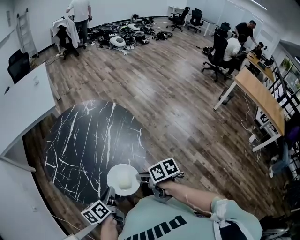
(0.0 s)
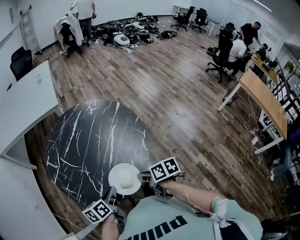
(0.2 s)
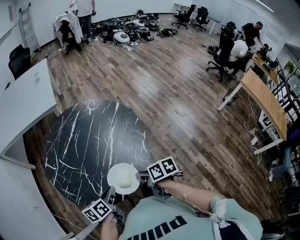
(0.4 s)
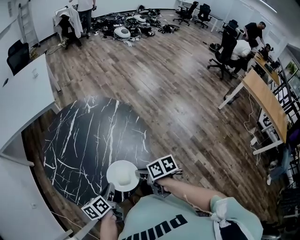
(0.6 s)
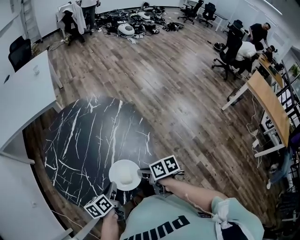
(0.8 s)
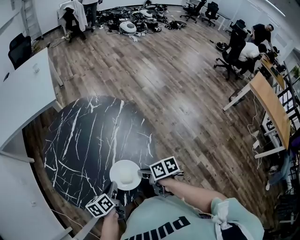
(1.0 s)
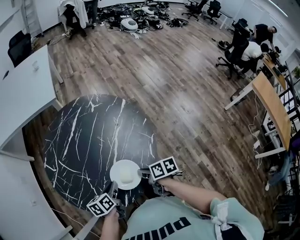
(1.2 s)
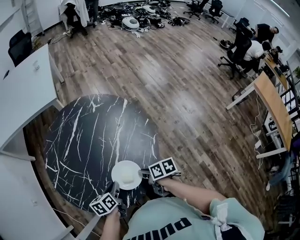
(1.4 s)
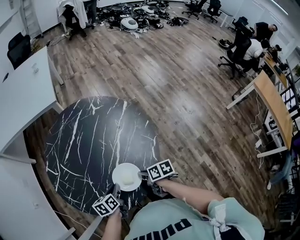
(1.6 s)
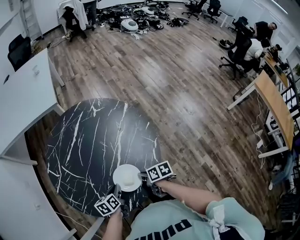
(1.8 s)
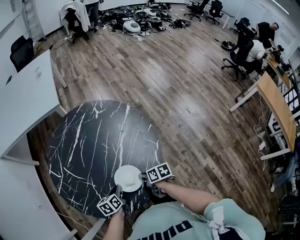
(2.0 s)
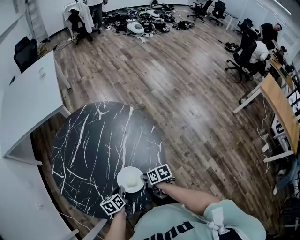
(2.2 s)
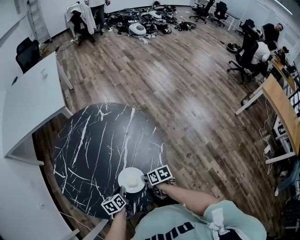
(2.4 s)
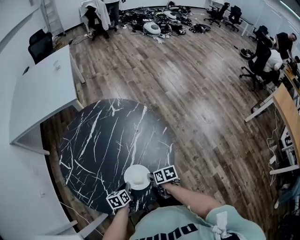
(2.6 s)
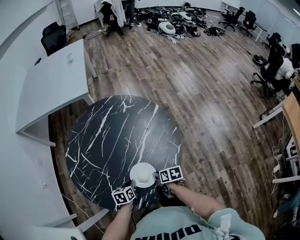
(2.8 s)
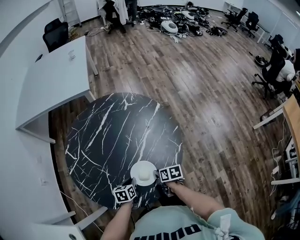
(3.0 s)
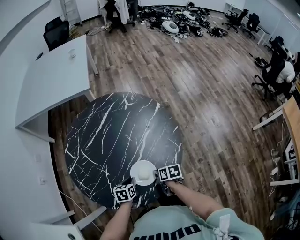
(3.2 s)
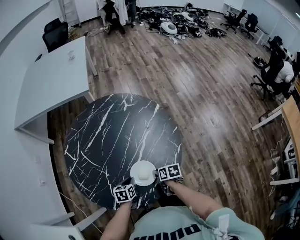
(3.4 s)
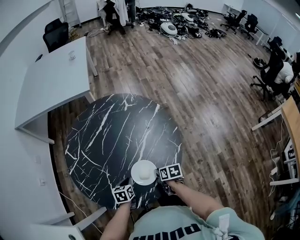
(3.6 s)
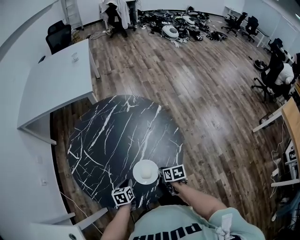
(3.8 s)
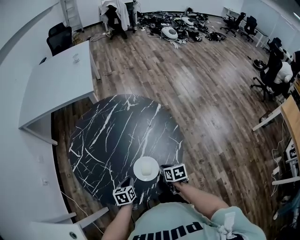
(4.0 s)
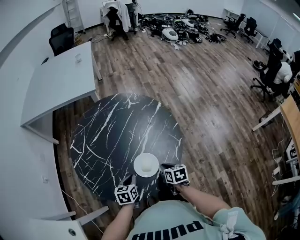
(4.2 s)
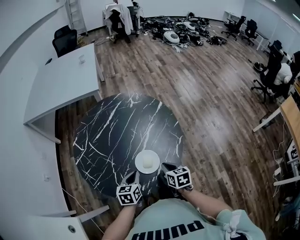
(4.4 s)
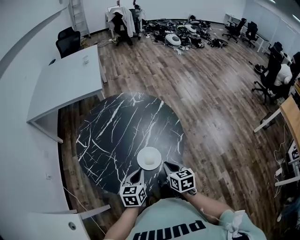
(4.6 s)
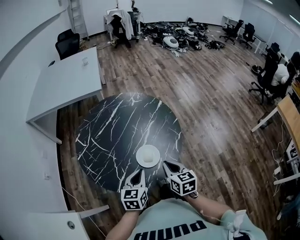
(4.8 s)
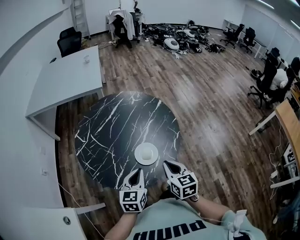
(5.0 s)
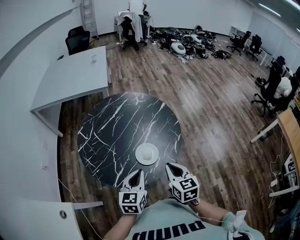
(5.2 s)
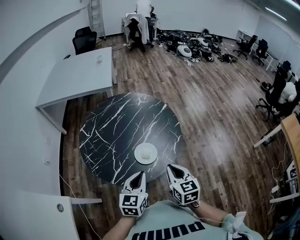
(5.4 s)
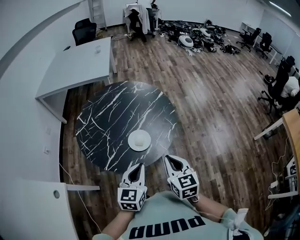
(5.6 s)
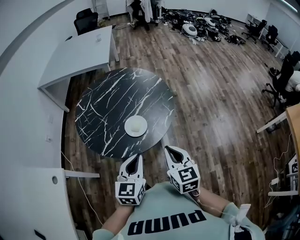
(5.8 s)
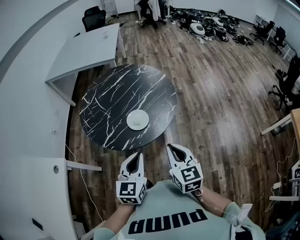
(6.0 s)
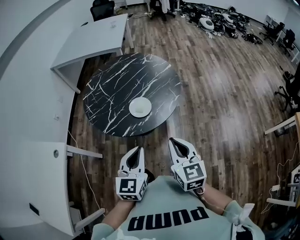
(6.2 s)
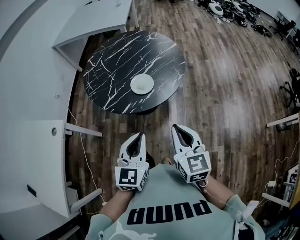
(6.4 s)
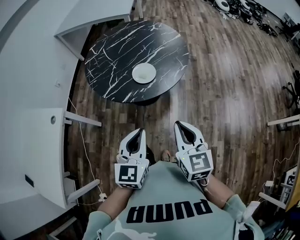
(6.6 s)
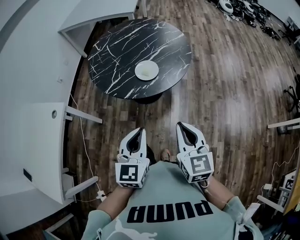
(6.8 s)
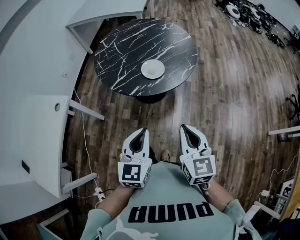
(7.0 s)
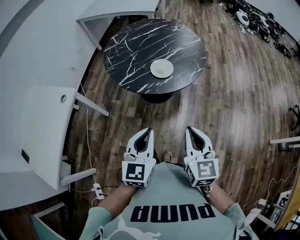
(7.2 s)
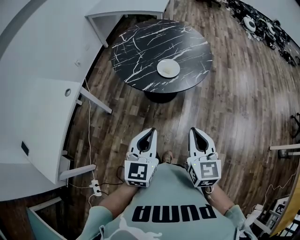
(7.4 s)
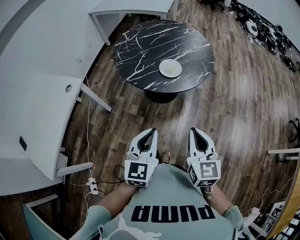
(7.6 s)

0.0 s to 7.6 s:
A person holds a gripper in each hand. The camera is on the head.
0.0 to 1.6 s: The right gripper heads forward and downward, covering about 20 cm, while the left gripper moves downward and forward, some 20 cm.
1.6 to 3.0 s: Both grippers move downward, about 5 cm.
3.0 to 4.6 s: The left gripper shifts some 15 cm upward, and rotates some 30 degrees. Meanwhile the right gripper shifts approximately 20 cm upward and backward, and turns by roughly 30 degrees.
4.6 to 6.0 s: The two grippers go roughly 25 cm backward, upward and to the right. The right gripper turns by about 30 degrees, while the left gripper turns by some 20 degrees.
6.0 to 7.6 s: The grippers both shift backward by approximately 15 cm.

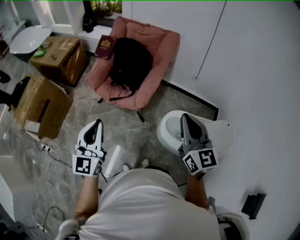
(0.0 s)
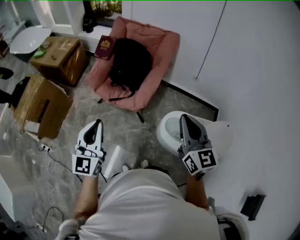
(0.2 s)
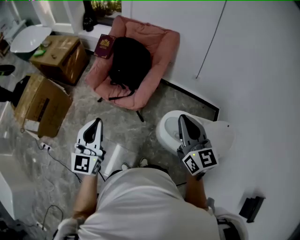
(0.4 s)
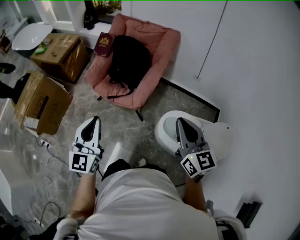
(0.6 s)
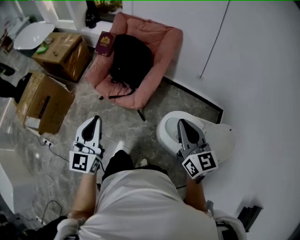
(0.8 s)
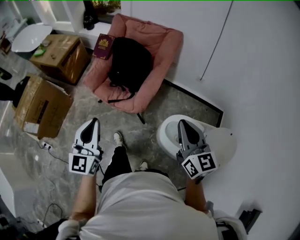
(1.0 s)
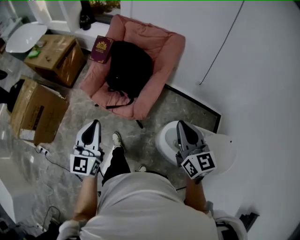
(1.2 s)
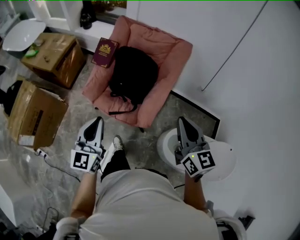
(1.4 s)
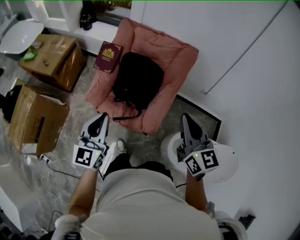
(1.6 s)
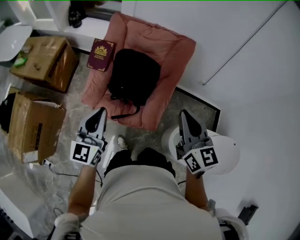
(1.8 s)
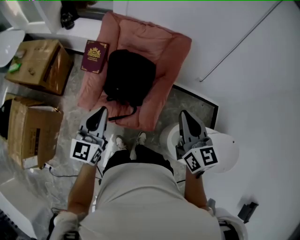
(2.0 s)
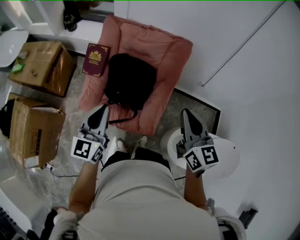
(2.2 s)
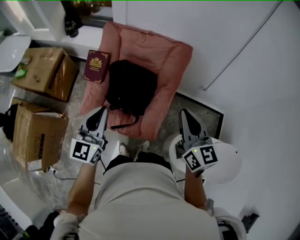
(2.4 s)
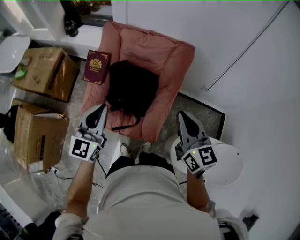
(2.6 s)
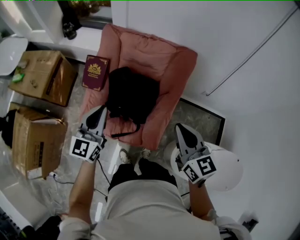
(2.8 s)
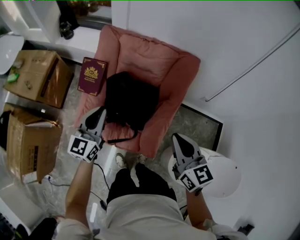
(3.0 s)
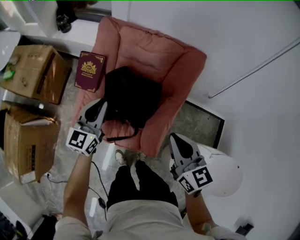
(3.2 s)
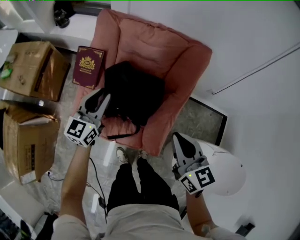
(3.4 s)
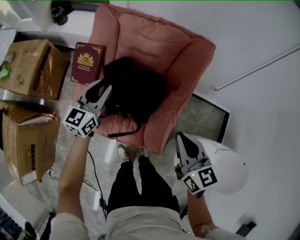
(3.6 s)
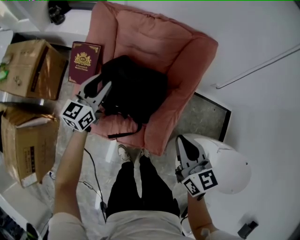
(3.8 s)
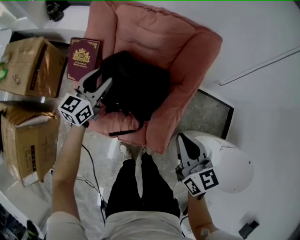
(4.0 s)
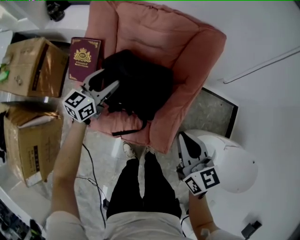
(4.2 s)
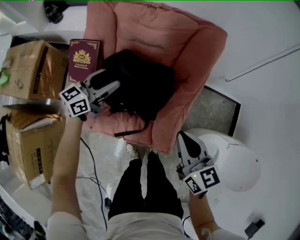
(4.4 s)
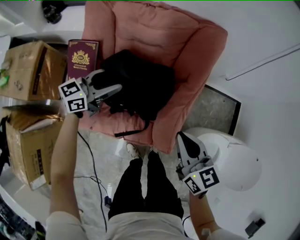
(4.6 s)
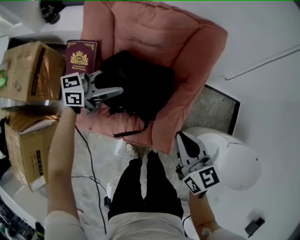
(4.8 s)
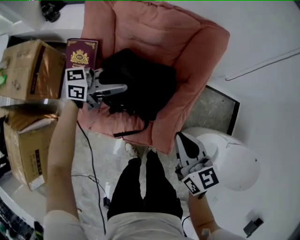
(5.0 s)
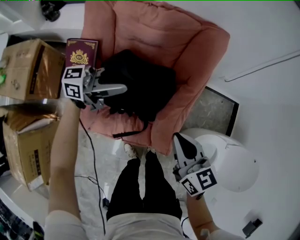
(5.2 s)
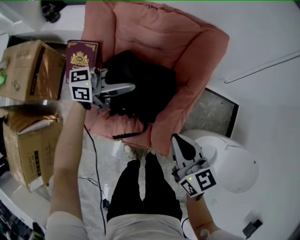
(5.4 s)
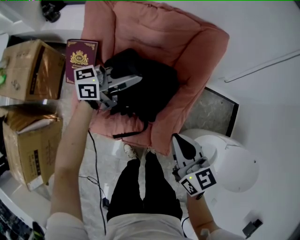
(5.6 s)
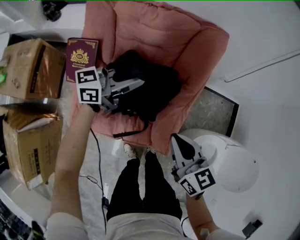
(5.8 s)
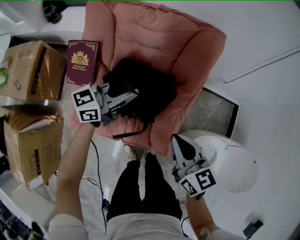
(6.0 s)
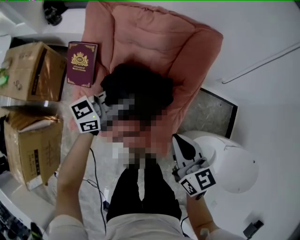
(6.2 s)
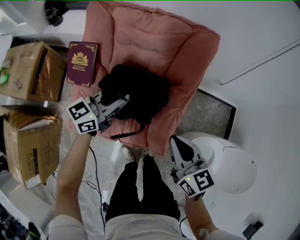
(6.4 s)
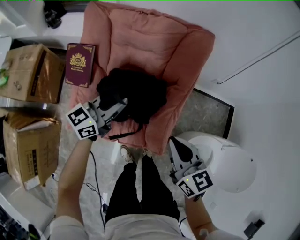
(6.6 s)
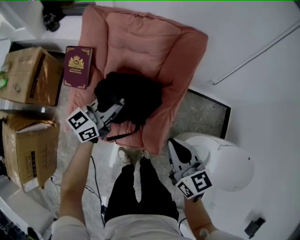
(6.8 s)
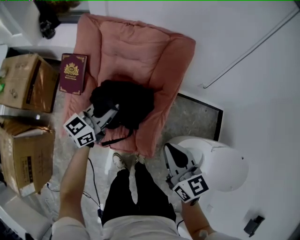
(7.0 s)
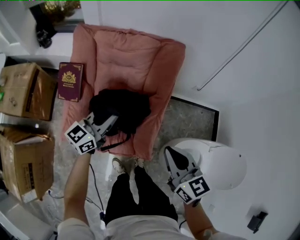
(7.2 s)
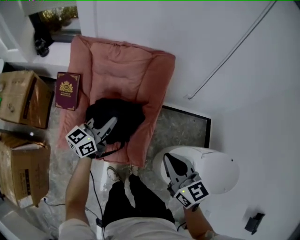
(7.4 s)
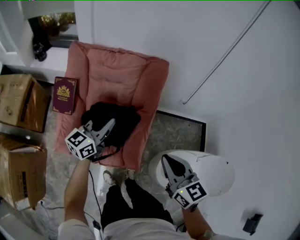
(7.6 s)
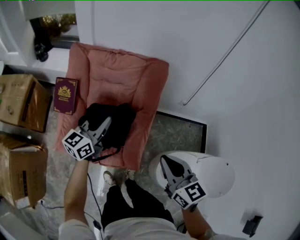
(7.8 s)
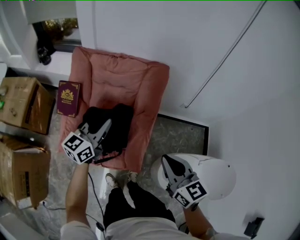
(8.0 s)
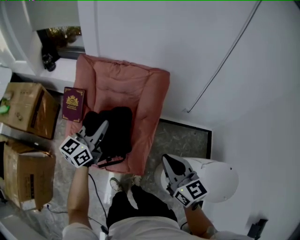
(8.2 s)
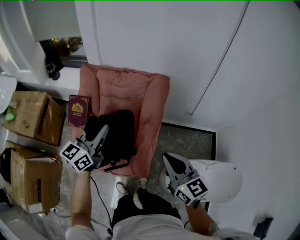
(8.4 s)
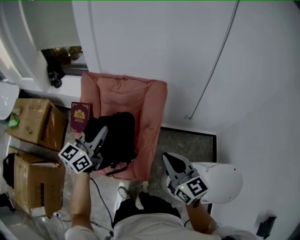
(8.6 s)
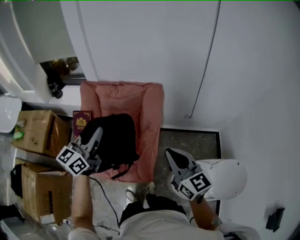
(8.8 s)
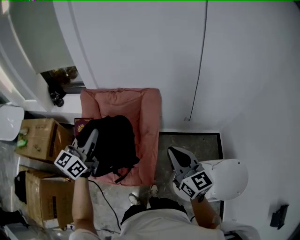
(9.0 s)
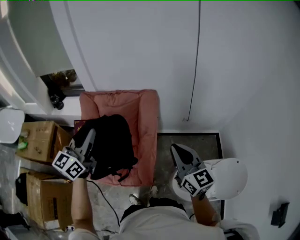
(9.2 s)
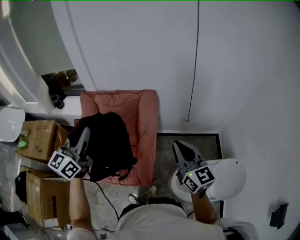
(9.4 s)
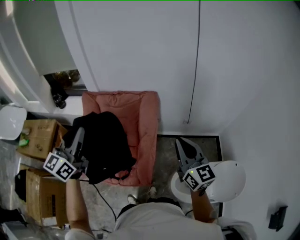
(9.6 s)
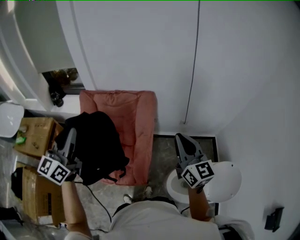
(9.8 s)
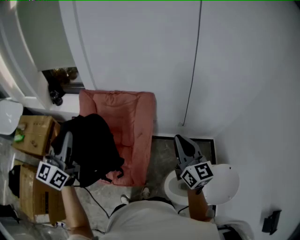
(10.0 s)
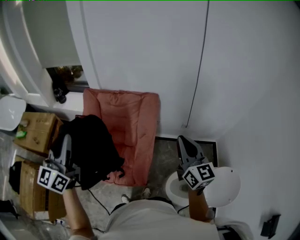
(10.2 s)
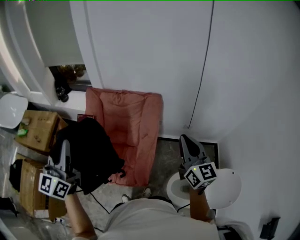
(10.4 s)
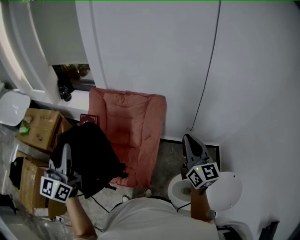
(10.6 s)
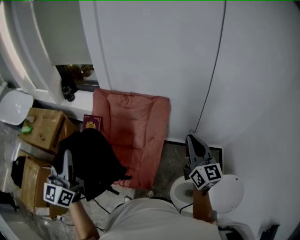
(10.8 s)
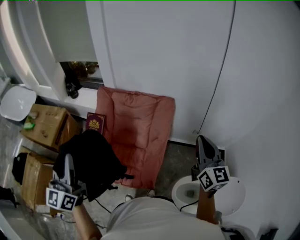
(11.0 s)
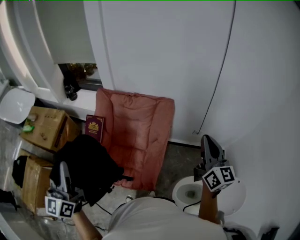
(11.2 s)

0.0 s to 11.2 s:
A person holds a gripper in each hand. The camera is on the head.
0.0 to 1.6 s: Both grippers travel together forward, approximately 30 cm.
1.6 to 3.2 s: The right gripper is displaced forward and downward by about 20 cm; the left gripper goes some 30 cm forward and downward.
3.2 to 4.8 s: Both grippers travel together downward, some 10 cm. The left gripper turns by some 60 degrees, and opens up.
4.8 to 6.4 s: The left gripper is displaced to the right by roughly 5 cm, and closes its fingers.
6.4 to 8.0 s: The right gripper is displaced upward and to the right by roughly 15 cm; the left gripper travels upward by approximately 10 cm.
8.0 to 9.6 s: The left gripper is displaced upward by roughly 25 cm. The right gripper travels upward and to the right by some 20 cm, and turns by about 20 degrees.
9.6 to 11.2 s: The left gripper heads to the left and backward, covering about 20 cm, and swivels about 30 degrees. The right gripper moves forward, some 5 cm.

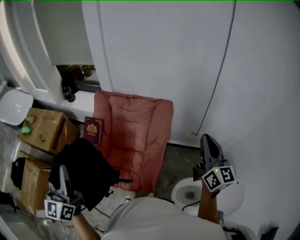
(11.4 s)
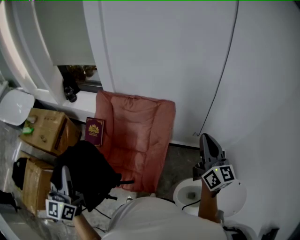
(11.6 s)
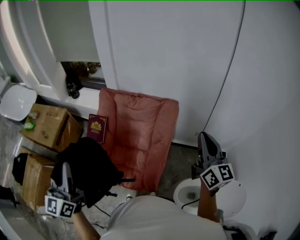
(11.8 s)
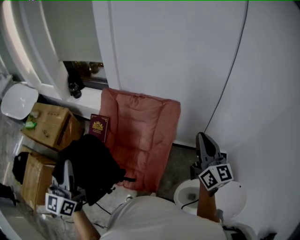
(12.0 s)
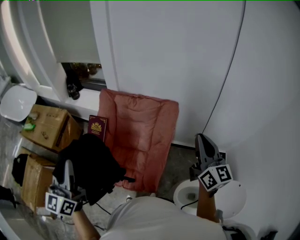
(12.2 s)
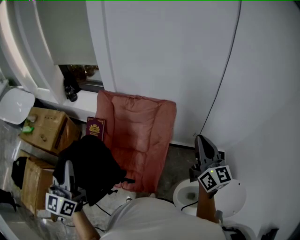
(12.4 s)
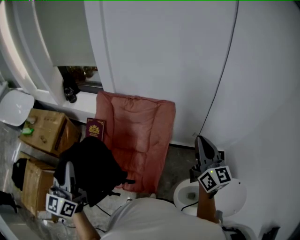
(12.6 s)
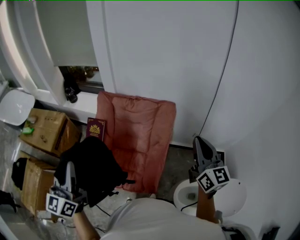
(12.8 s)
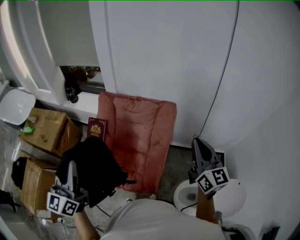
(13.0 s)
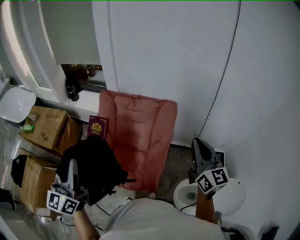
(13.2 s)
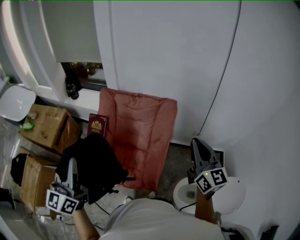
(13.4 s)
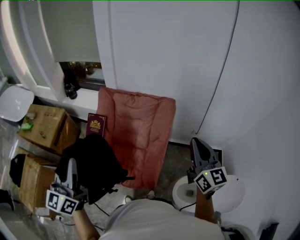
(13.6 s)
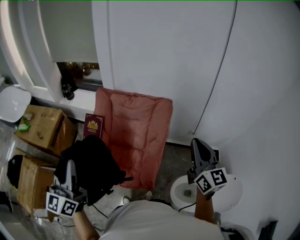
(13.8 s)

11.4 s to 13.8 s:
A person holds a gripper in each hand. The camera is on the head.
11.4 to 12.6 s: The grippers stay close to where they were, moving slightly.
12.6 to 13.8 s: The right gripper moves roughly 5 cm.

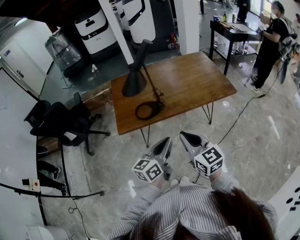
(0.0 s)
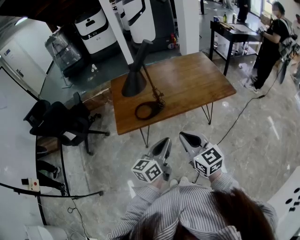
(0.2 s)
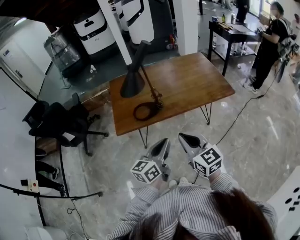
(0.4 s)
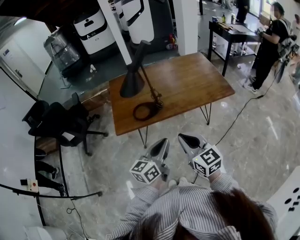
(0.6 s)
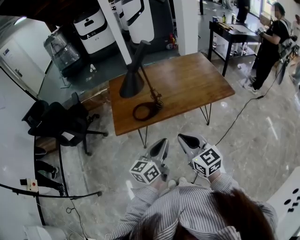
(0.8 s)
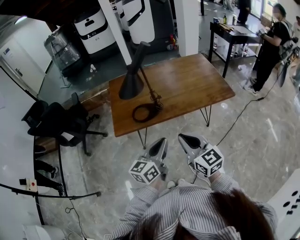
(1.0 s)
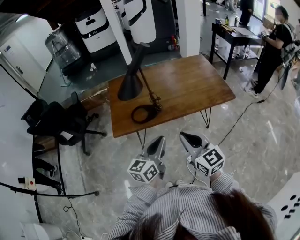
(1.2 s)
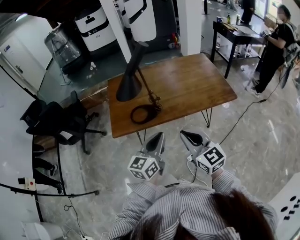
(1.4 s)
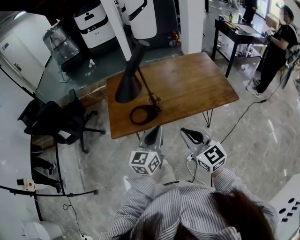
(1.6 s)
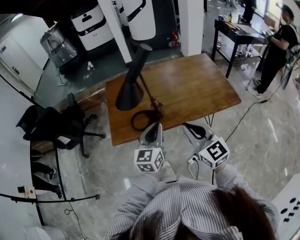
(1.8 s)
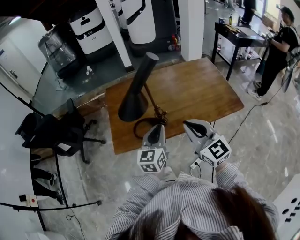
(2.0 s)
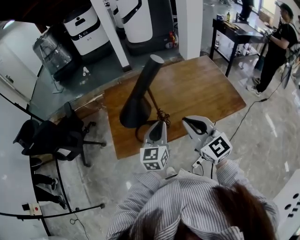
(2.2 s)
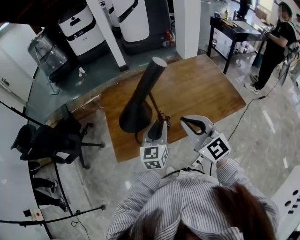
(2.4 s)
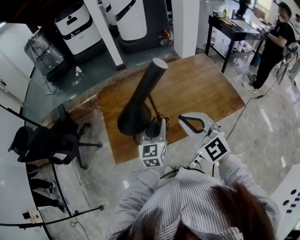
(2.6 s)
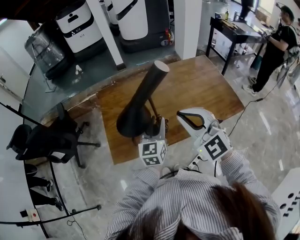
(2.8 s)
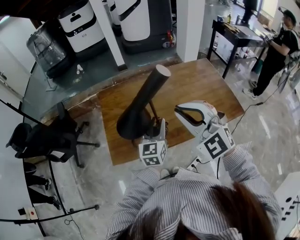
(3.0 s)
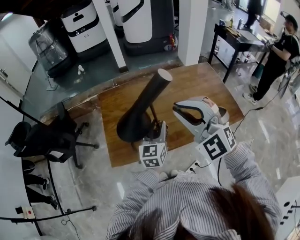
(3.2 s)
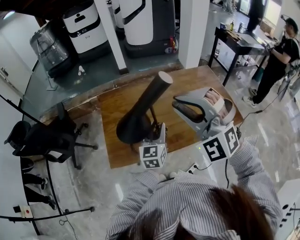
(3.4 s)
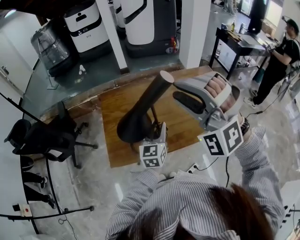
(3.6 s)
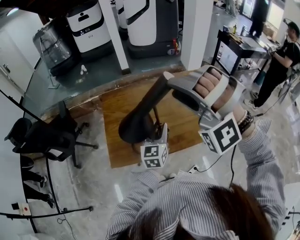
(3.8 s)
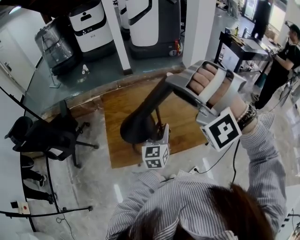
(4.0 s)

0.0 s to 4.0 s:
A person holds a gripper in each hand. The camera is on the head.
0.0 to 1.4 s: The left gripper moves forward, approximately 5 cm. Meanwhile the right gripper ends up some 5 cm from where it was.
1.4 to 2.6 s: Both grippers move forward, about 20 cm. The right gripper changes its angle by about 30 degrees; the left gripper opens up.
2.6 to 4.0 s: The right gripper shifts approximately 15 cm upward and forward, twists about 90 degrees counterclockwise, seen from behind, and opens up.
